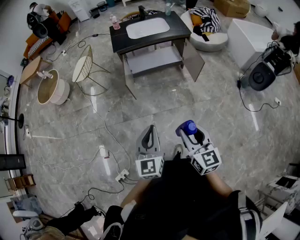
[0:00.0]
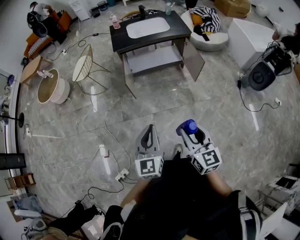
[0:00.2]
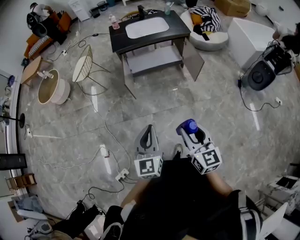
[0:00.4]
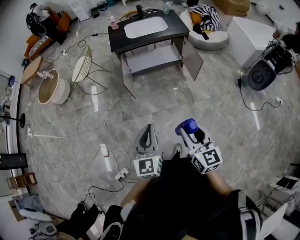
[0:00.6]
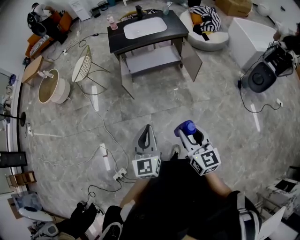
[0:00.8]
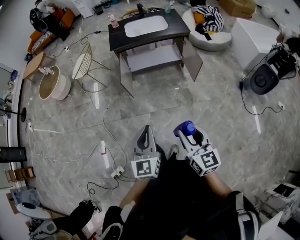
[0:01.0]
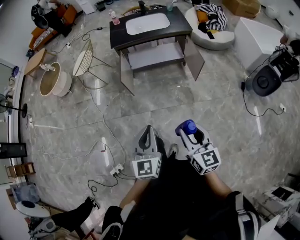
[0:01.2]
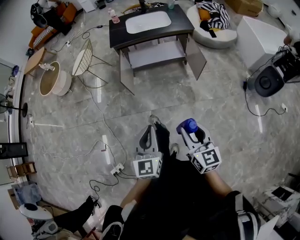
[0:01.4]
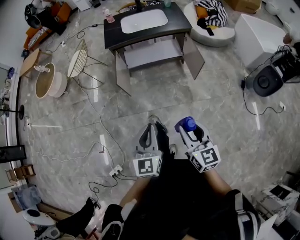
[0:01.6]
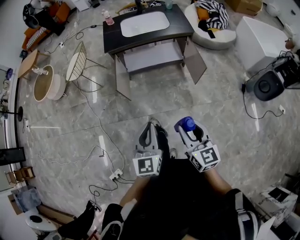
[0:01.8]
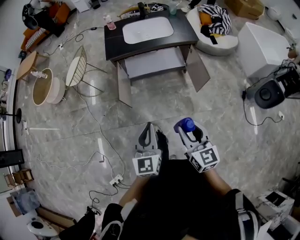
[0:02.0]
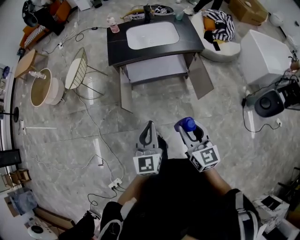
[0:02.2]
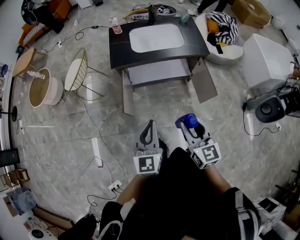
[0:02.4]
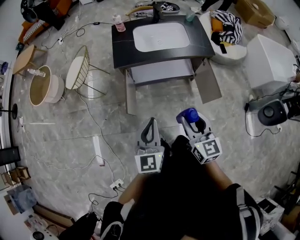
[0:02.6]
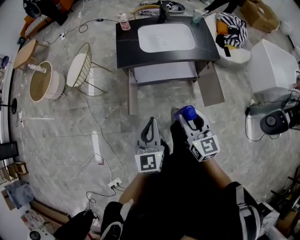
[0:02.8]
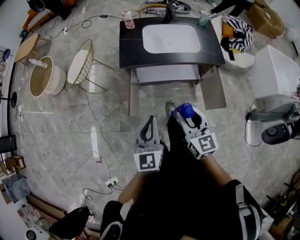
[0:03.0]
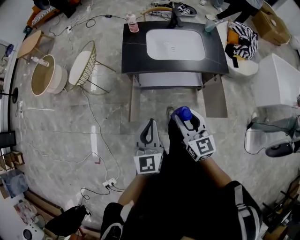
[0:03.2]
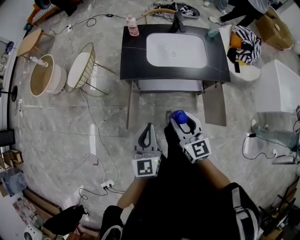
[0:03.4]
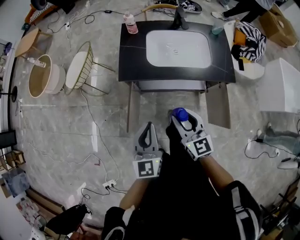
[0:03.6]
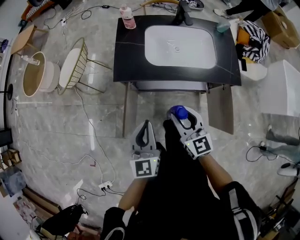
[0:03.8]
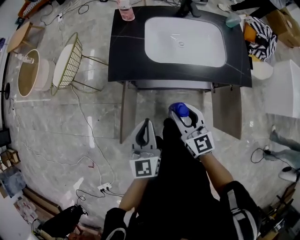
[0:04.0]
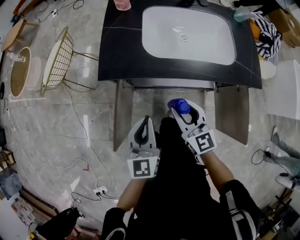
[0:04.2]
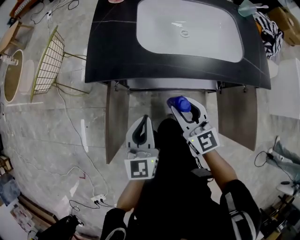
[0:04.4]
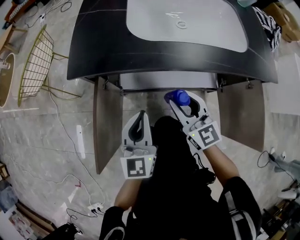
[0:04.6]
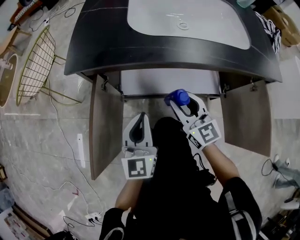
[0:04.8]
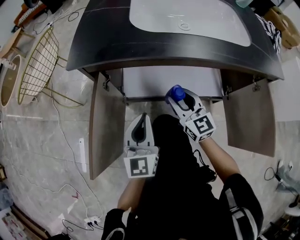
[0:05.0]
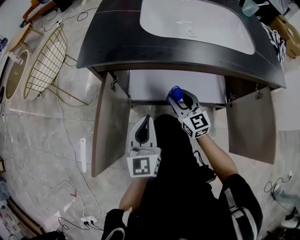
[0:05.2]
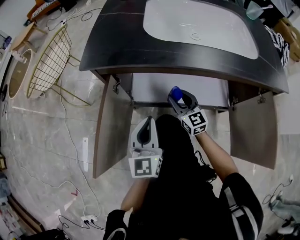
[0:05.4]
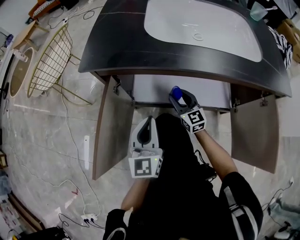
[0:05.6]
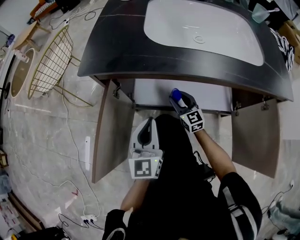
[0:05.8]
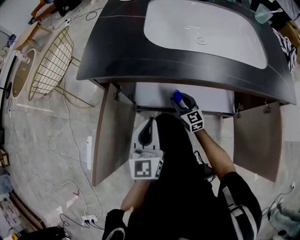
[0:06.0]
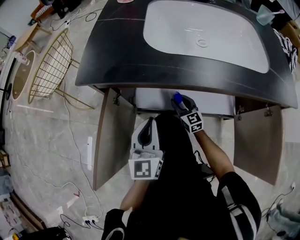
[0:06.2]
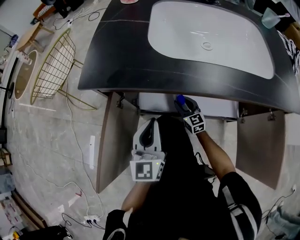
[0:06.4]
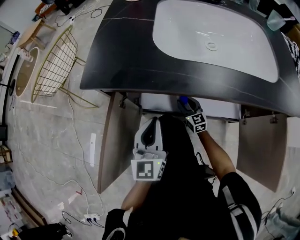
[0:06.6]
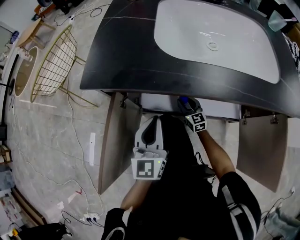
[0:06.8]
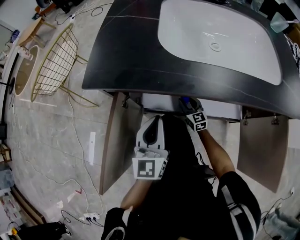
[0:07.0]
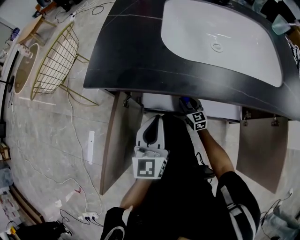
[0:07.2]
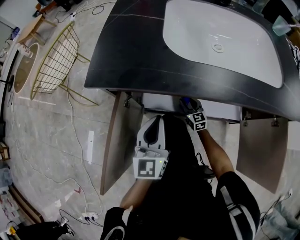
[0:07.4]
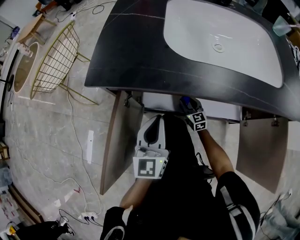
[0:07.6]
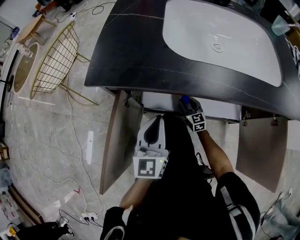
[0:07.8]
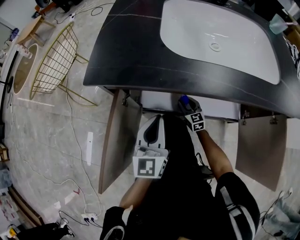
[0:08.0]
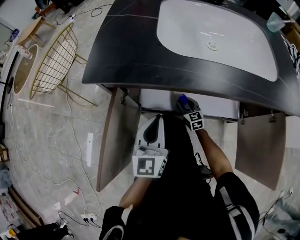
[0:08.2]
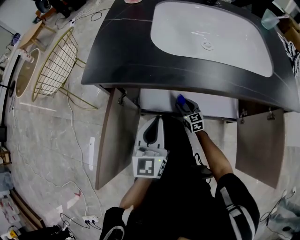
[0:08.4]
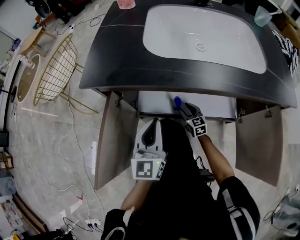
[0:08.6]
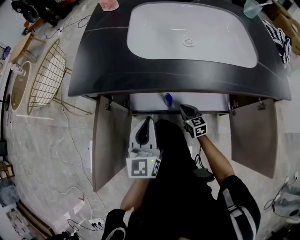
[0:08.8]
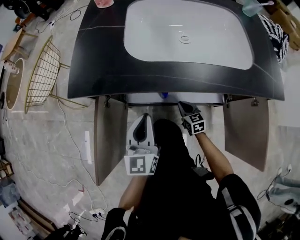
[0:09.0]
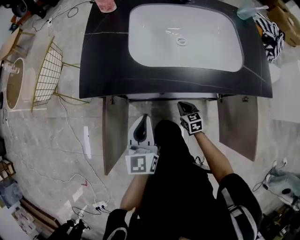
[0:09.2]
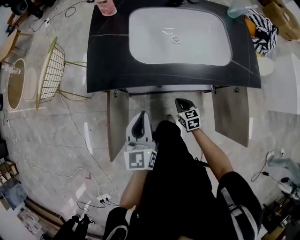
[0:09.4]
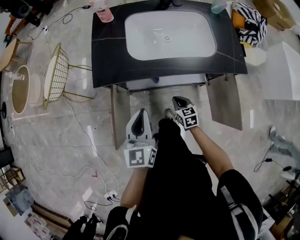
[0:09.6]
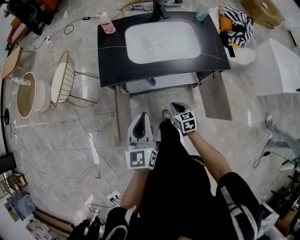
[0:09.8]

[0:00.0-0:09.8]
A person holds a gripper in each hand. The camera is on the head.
0:00.0 to 0:01.4: The grippers both shift to the right by roughly 10 cm.
0:01.4 to 0:02.8: Both grippers are carried forward, approximately 40 cm.
0:02.8 to 0:04.2: The left gripper goes some 40 cm downward and forward. The right gripper goes roughly 40 cm forward and downward.
0:04.2 to 0:05.6: Both grippers move downward, approximately 25 cm.
0:05.6 to 0:07.0: The right gripper shifts approximately 15 cm downward and forward; the left gripper heads forward, covering some 5 cm.
0:07.0 to 0:08.4: There are only small adjustments of the grippers.
0:08.4 to 0:09.8: The two grippers go roughly 40 cm upward and backward. The right gripper rotates approximately 30 degrees, and closes up.

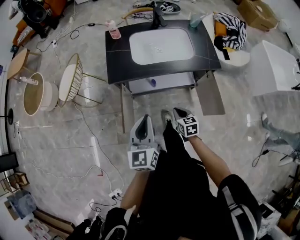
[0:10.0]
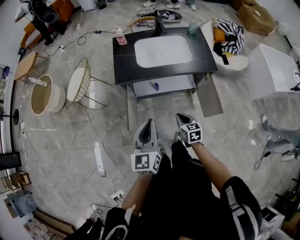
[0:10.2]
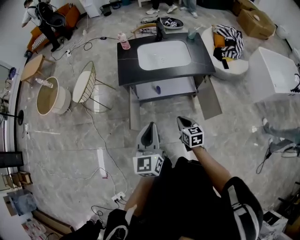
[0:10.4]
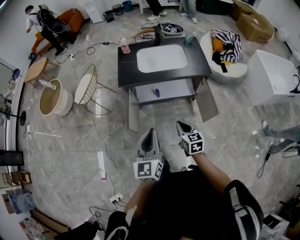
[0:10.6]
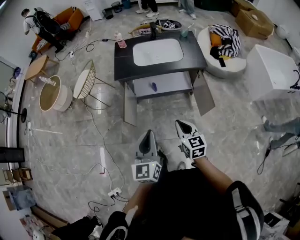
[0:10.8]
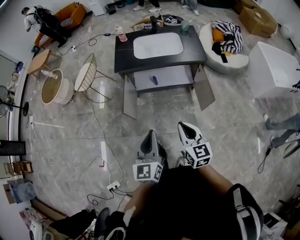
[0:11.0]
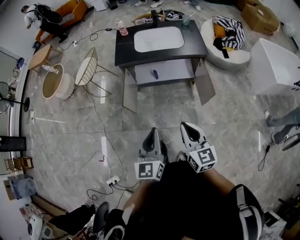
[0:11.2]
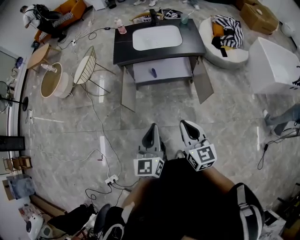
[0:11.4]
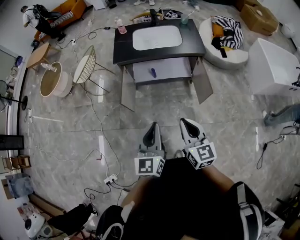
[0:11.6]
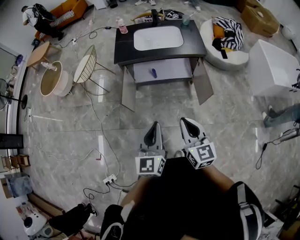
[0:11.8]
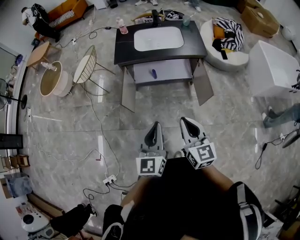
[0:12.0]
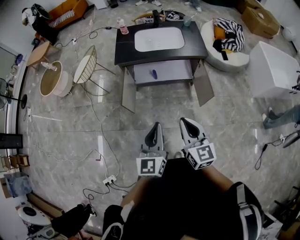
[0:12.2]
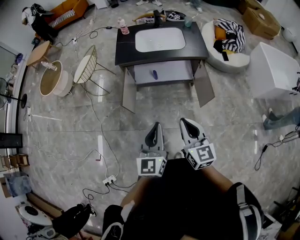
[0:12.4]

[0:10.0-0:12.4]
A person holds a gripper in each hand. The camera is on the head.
0:10.0 to 0:11.2: The left gripper moves backward, roughly 35 cm. Meanwhile the right gripper shifts about 50 cm backward and upward, and turns by some 30 degrees.
0:11.2 to 0:12.4: There are only small adjustments of the grippers.

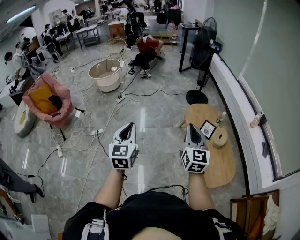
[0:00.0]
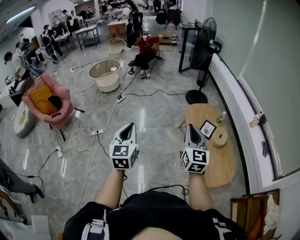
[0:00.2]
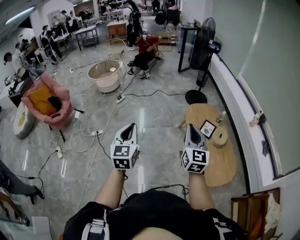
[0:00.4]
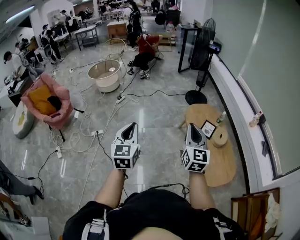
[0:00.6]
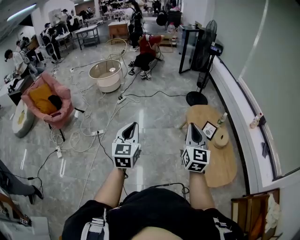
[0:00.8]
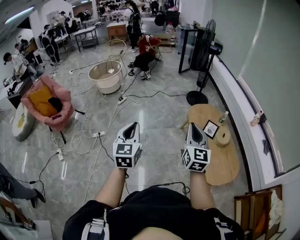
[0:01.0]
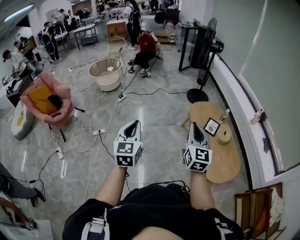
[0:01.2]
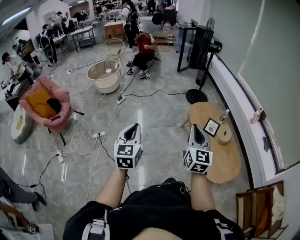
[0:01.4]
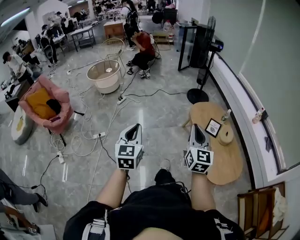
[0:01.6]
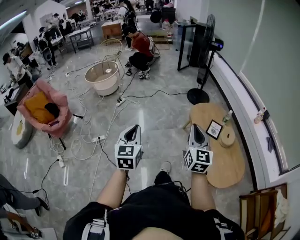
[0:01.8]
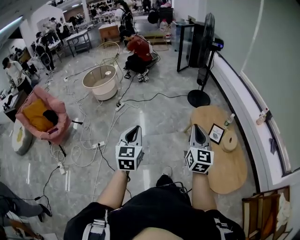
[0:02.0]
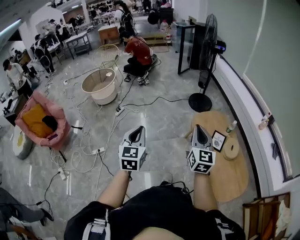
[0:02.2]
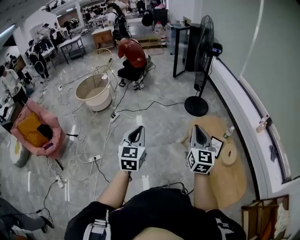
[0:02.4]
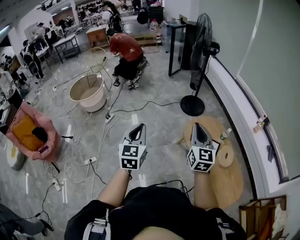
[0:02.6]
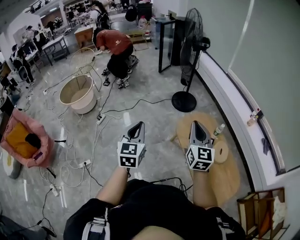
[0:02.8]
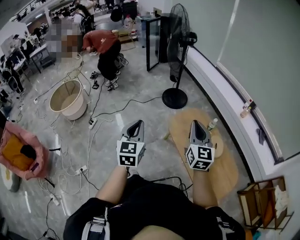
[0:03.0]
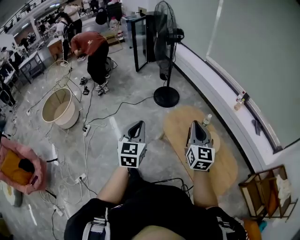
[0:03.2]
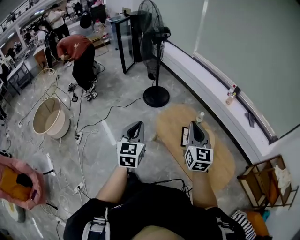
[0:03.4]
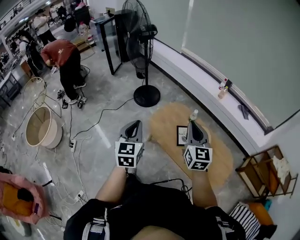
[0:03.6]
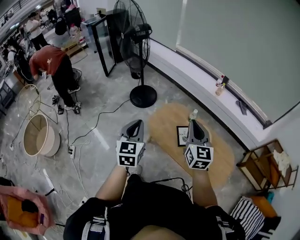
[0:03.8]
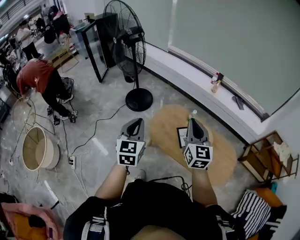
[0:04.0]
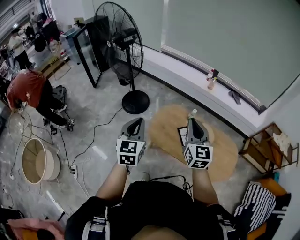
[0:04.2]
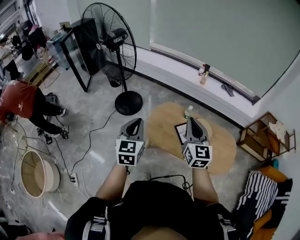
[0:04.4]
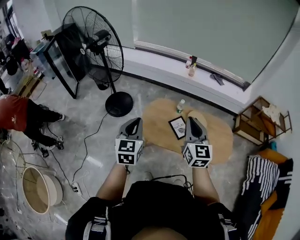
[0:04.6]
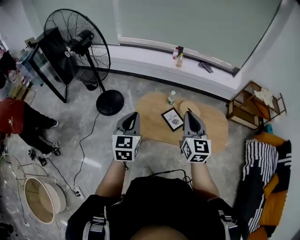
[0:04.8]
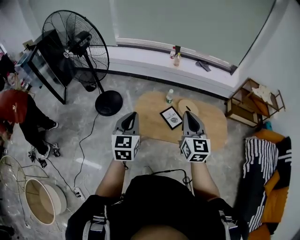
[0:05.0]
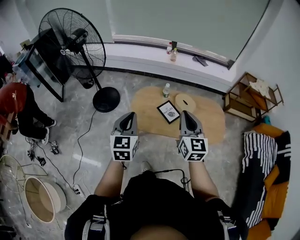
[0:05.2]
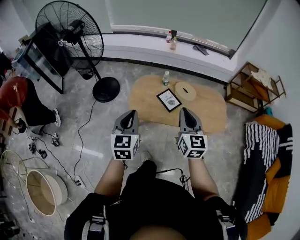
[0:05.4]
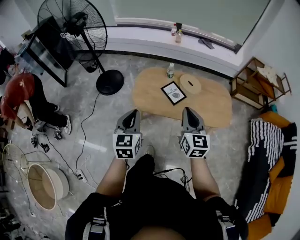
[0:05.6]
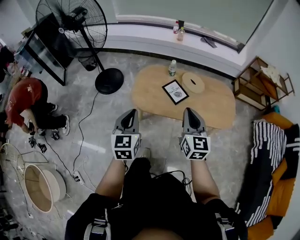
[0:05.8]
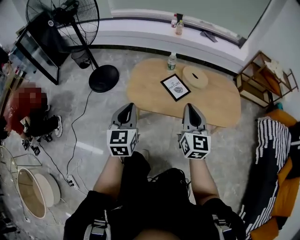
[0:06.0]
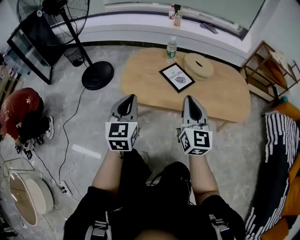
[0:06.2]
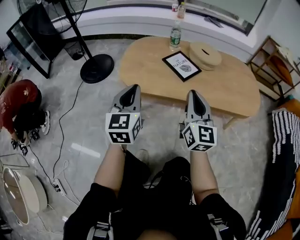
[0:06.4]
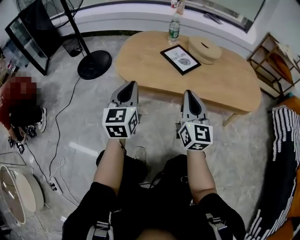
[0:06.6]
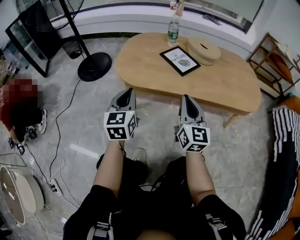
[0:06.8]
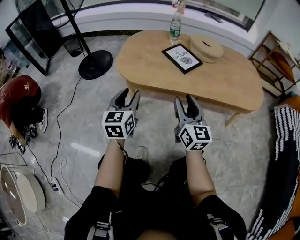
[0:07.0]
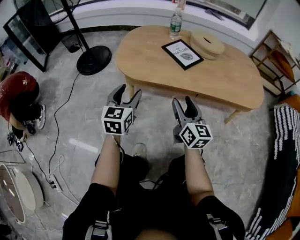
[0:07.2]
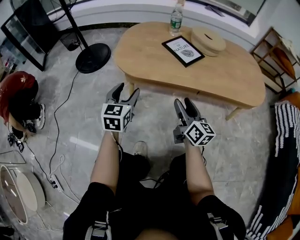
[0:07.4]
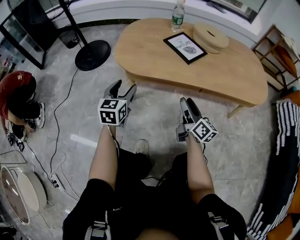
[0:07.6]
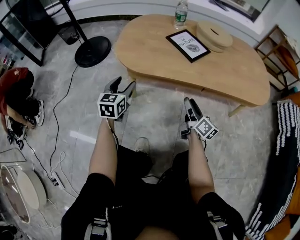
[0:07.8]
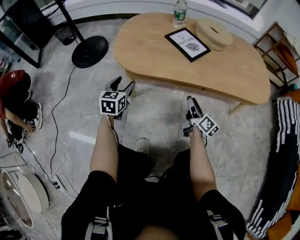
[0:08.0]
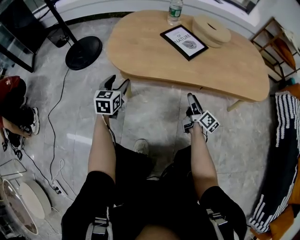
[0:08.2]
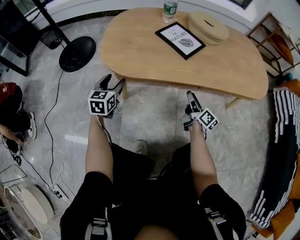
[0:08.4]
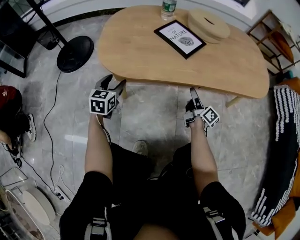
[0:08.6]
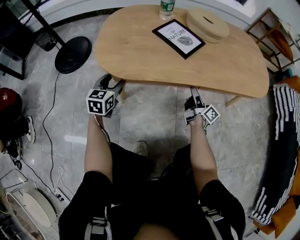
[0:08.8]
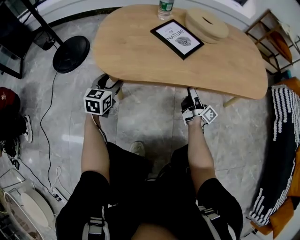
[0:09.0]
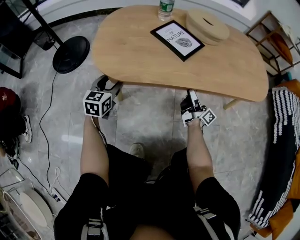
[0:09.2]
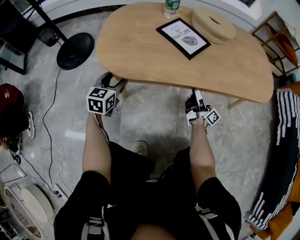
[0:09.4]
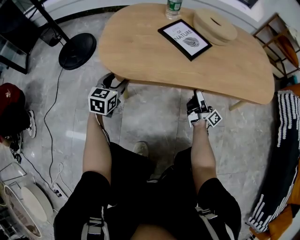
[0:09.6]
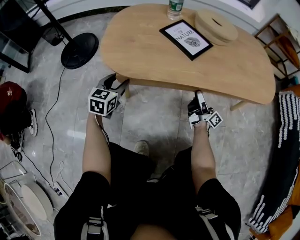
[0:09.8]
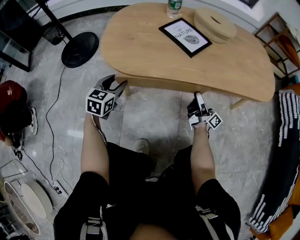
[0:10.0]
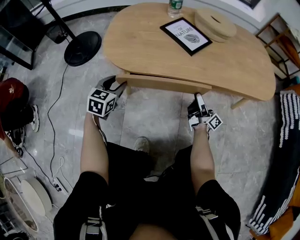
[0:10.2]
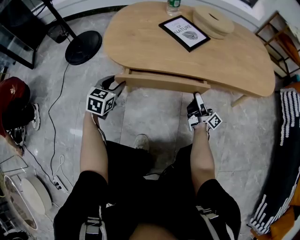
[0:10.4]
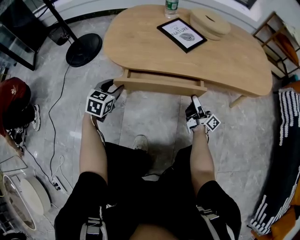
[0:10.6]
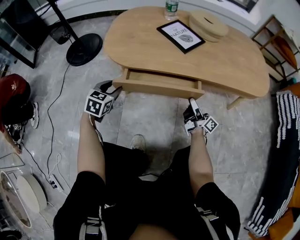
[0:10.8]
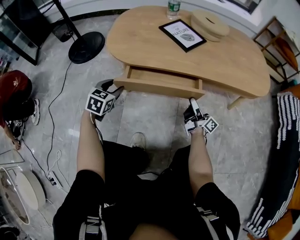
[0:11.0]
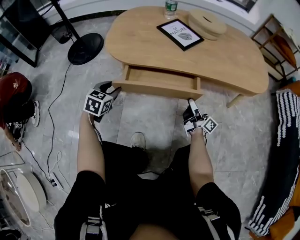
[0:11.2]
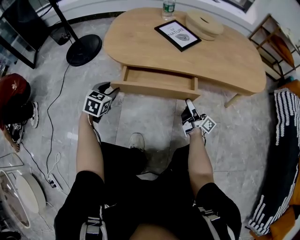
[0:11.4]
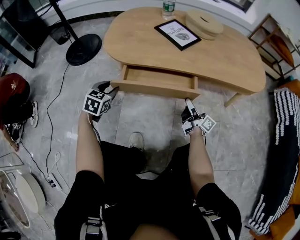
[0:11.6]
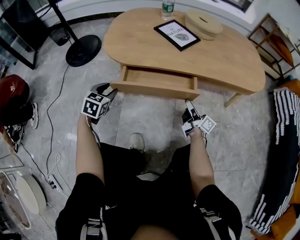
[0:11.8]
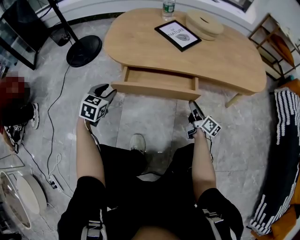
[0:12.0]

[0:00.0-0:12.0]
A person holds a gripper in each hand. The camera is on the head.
0:00.0 to 0:01.6: Both grippers move to the left, roughly 10 cm.
0:01.6 to 0:03.0: The pair of grippers is taken forward, some 40 cm.
0:03.0 to 0:04.4: The left gripper changes place by about 30 cm, and changes its angle by some 40 degrees; the right gripper moves approximately 15 cm, and rotates approximately 40 degrees.
0:04.4 to 0:06.0: Both grippers travel together downward, approximately 30 cm.
0:06.0 to 0:07.6: The two grippers go about 40 cm downward. The left gripper opens. The right gripper rolls clockwise, seen from behind, by some 40 degrees, and opens its fingers.
0:07.6 to 0:09.0: The right gripper heads forward, downward and to the right, covering roughly 20 cm, and rotates some 30 degrees; the left gripper moves forward and downward, some 15 cm.
0:09.0 to 0:10.4: Both grippers move backward, about 5 cm.
0:10.4 to 0:12.0: Both grippers travel together backward, roughly 10 cm. The right gripper swivels roughly 30 degrees.
